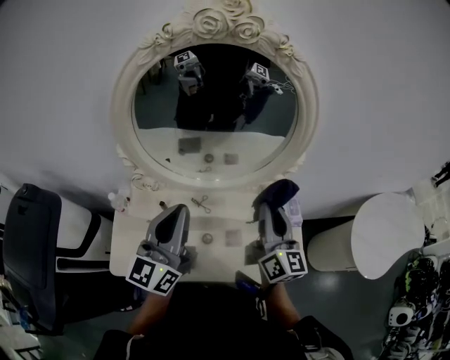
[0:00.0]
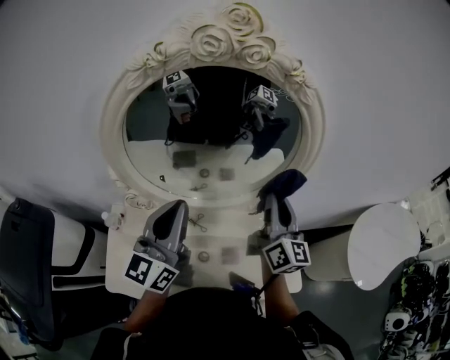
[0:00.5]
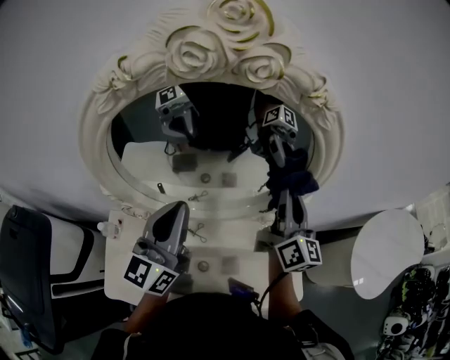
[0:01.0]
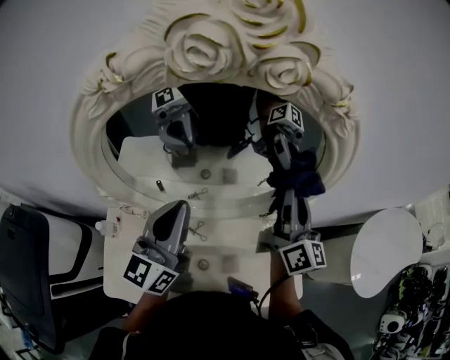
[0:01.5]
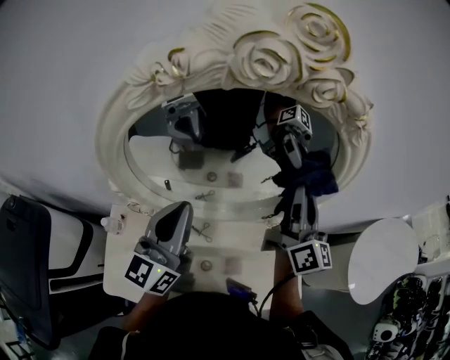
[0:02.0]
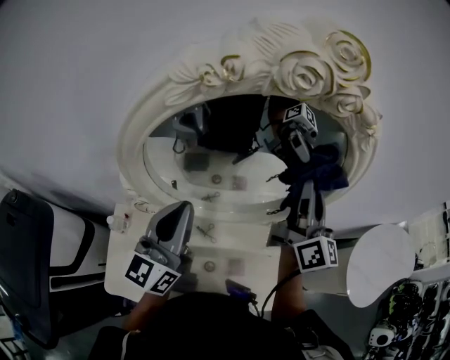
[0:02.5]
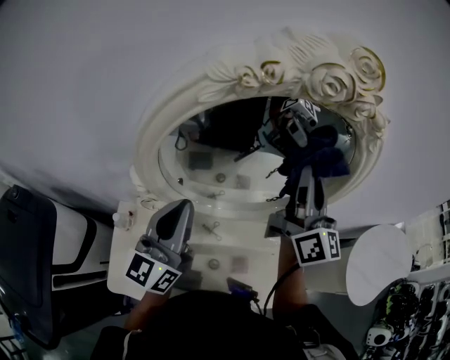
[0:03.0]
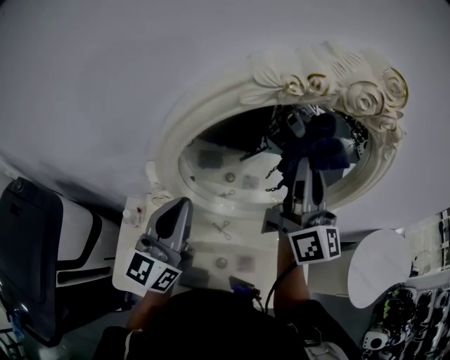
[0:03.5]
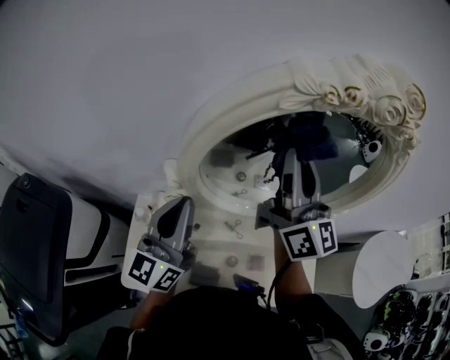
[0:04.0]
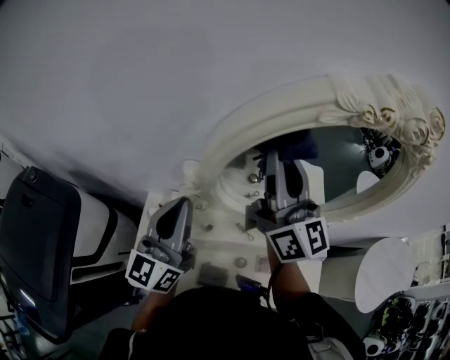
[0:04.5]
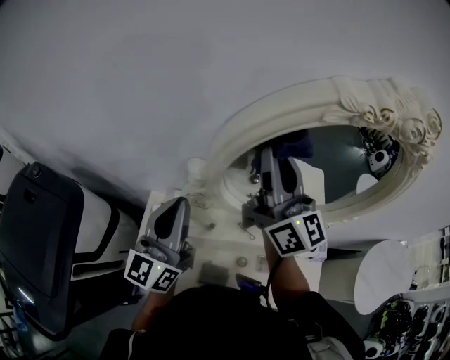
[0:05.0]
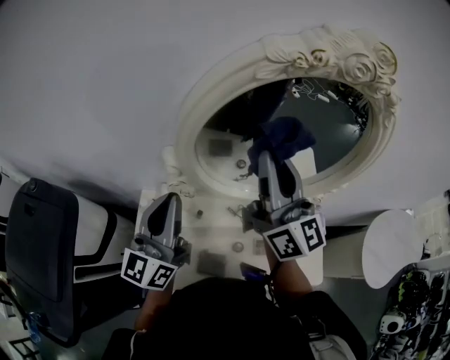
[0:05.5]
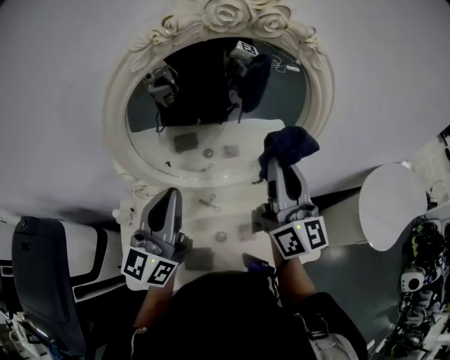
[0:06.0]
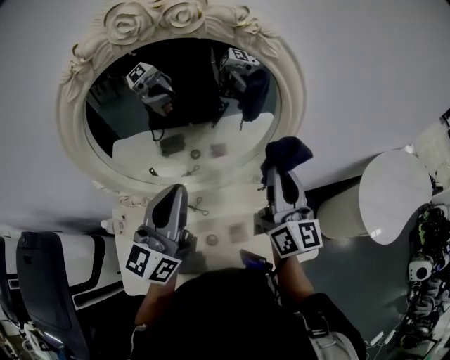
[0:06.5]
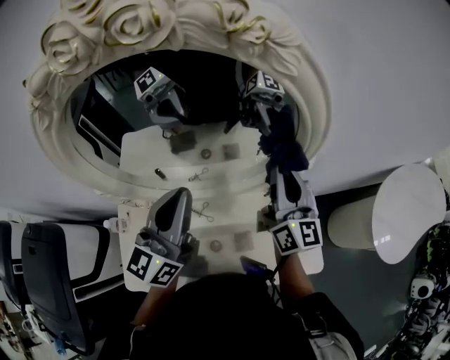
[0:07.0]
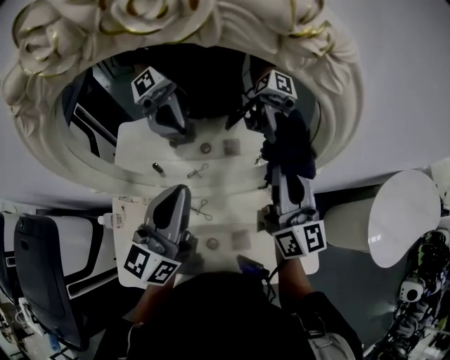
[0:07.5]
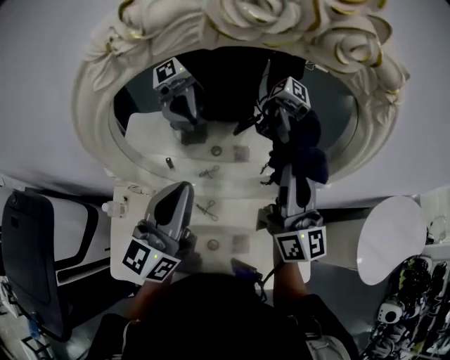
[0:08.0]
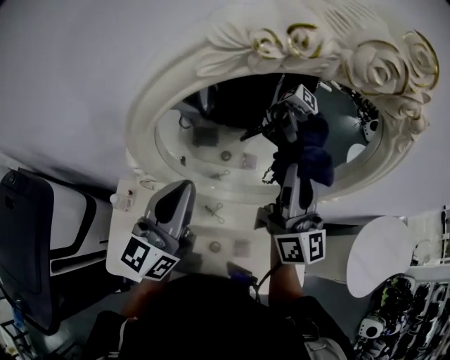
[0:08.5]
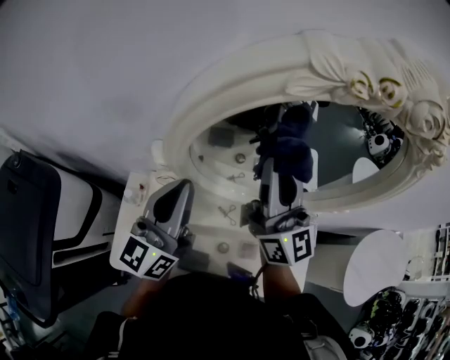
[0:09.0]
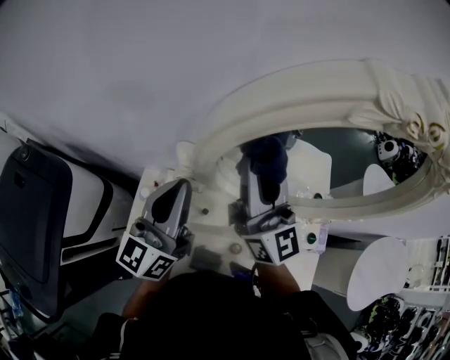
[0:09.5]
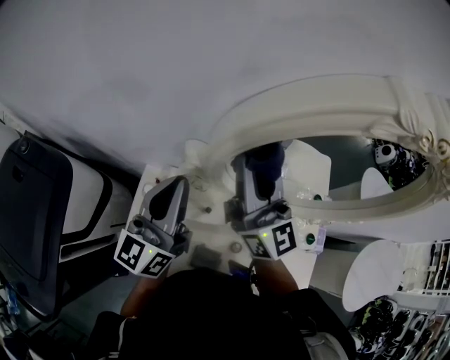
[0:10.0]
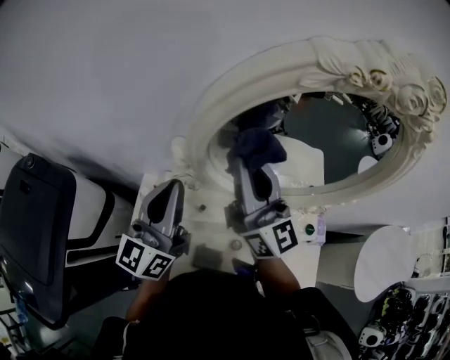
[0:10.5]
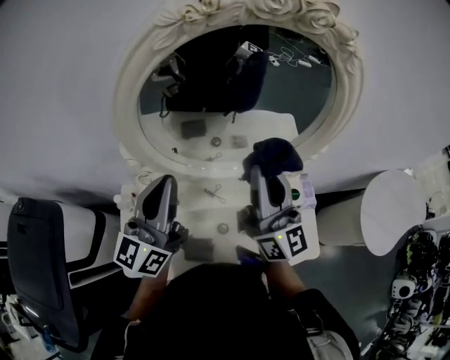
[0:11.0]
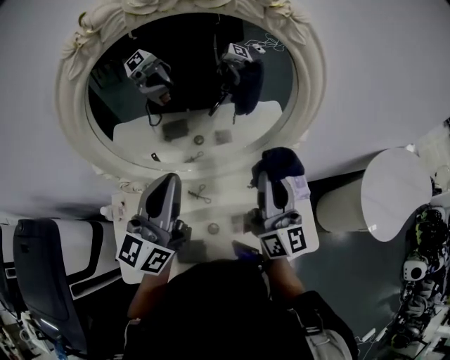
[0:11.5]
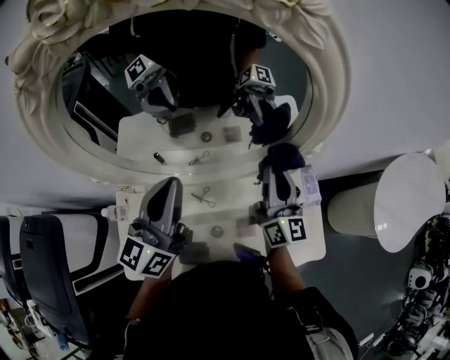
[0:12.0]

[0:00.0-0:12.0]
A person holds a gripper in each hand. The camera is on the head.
0:00.0 to 0:02.0: The right gripper heads forward and upward, covering about 20 cm. Meanwhile the left gripper goes approximately 15 cm forward.
0:02.0 to 0:04.0: The left gripper travels to the left by some 15 cm; the right gripper is displaced to the left and upward by approximately 25 cm, and turns by about 20 degrees.
0:04.0 to 0:06.0: The two grippers go approximately 15 cm to the right and backward.
0:06.0 to 0:08.0: The grippers both shift forward by about 10 cm.
0:08.0 to 0:10.0: Both grippers travel together to the left, some 30 cm. The right gripper swivels about 30 degrees.
0:10.0 to 0:12.0: The right gripper moves roughly 40 cm, and swivels approximately 40 degrees, while the left gripper changes place by roughly 25 cm, and rotates about 20 degrees.

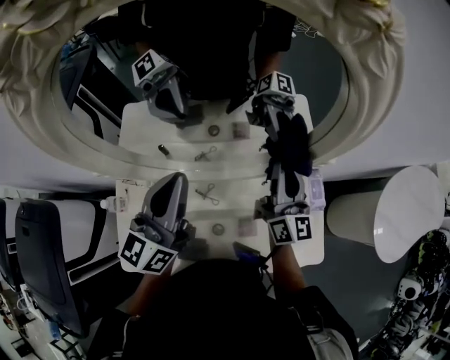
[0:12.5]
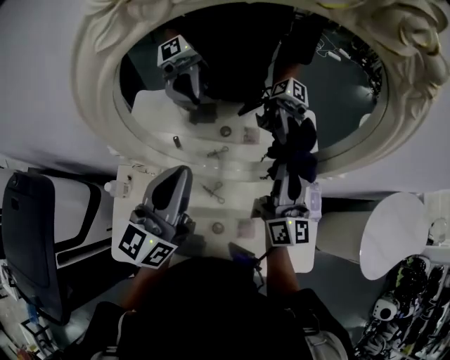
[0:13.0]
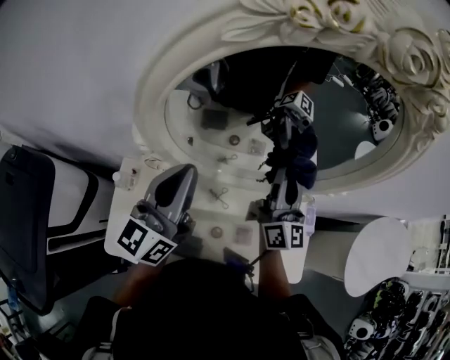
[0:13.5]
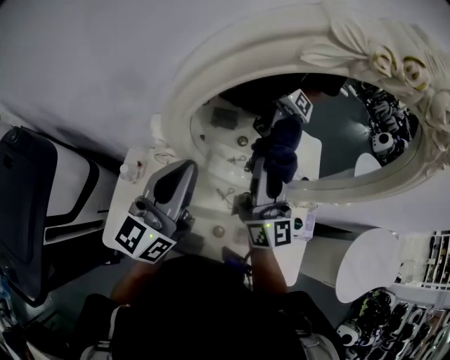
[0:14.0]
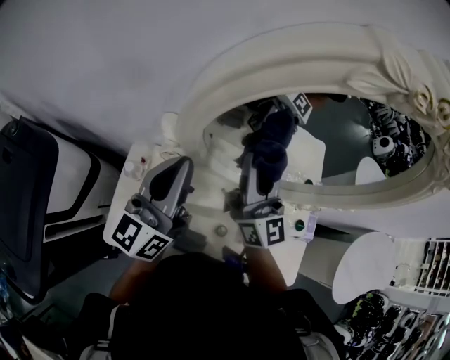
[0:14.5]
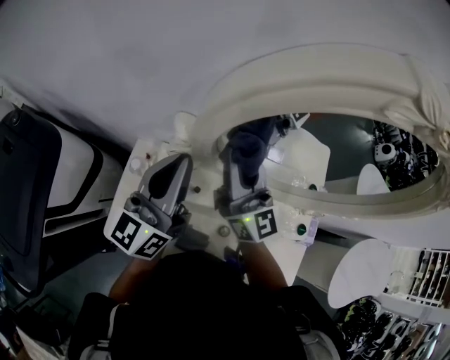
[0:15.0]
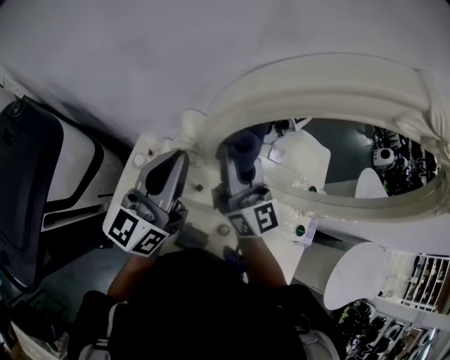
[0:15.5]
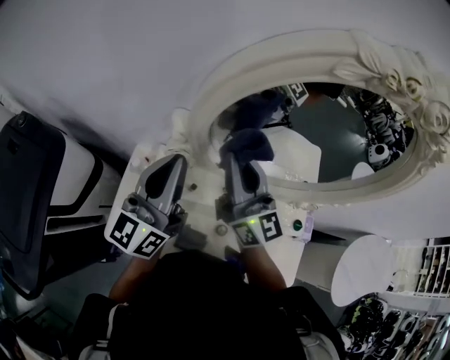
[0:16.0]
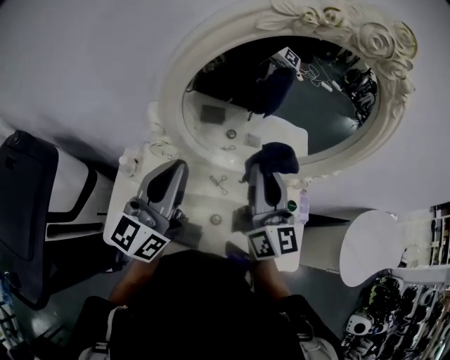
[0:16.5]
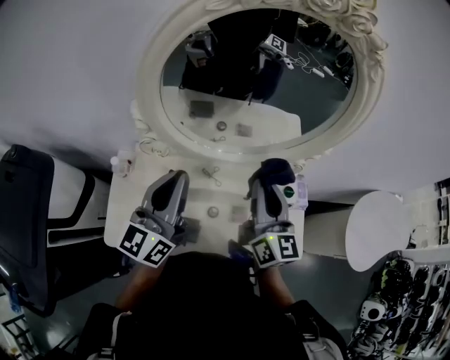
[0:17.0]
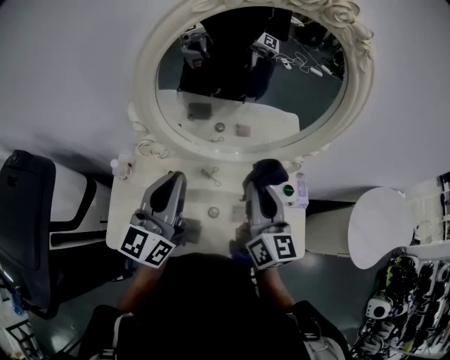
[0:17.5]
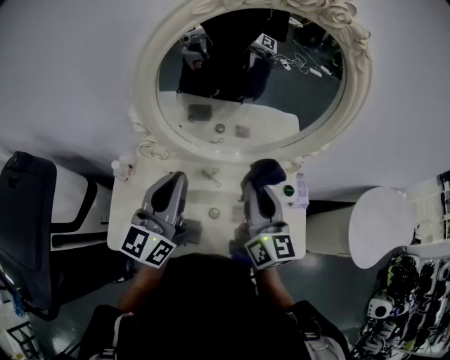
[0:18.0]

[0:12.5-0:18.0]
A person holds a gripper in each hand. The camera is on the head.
0:12.5 to 0:14.5: The right gripper travels to the left by approximately 30 cm, and changes its angle by some 30 degrees. The left gripper is displaced to the left by some 20 cm.
0:14.5 to 0:16.0: The right gripper travels to the left by roughly 5 cm.
0:16.0 to 0:18.0: The right gripper heads to the right and backward, covering approximately 20 cm, and turns by roughly 30 degrees. The left gripper goes about 15 cm to the right and backward.

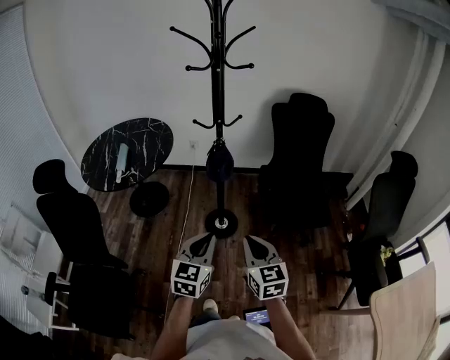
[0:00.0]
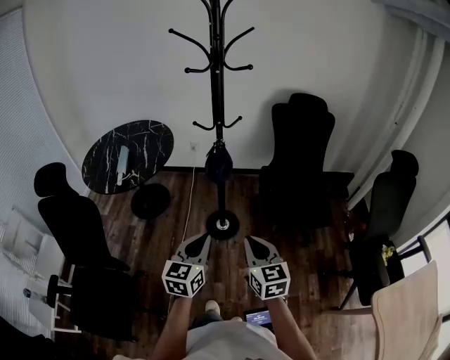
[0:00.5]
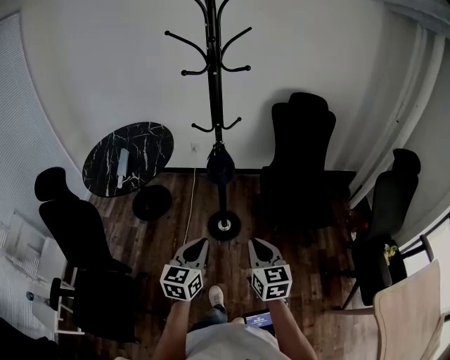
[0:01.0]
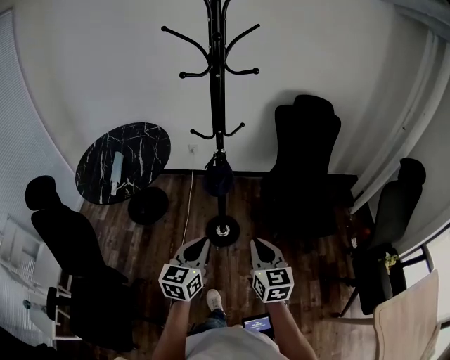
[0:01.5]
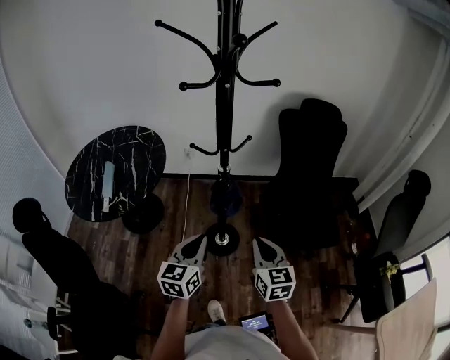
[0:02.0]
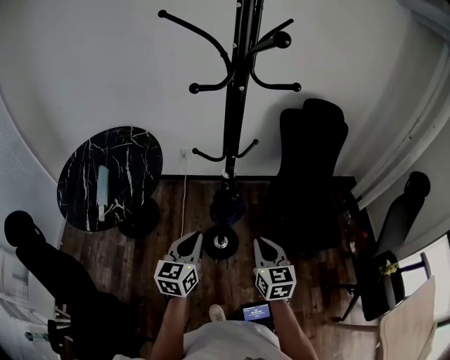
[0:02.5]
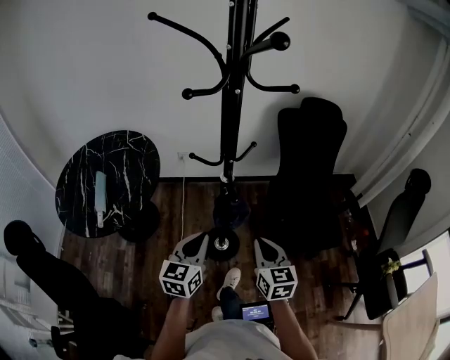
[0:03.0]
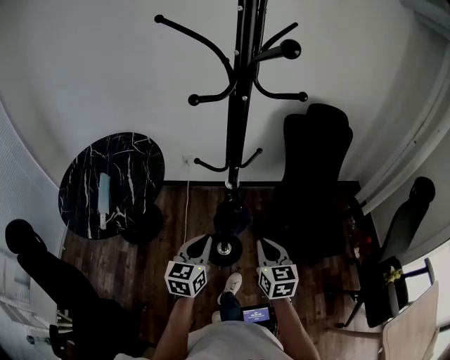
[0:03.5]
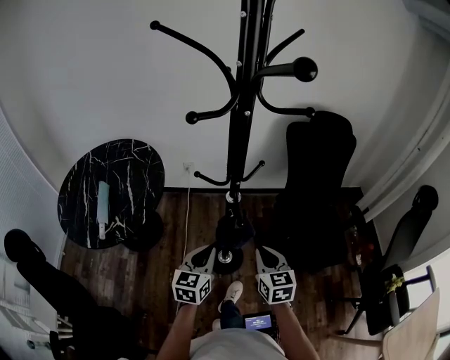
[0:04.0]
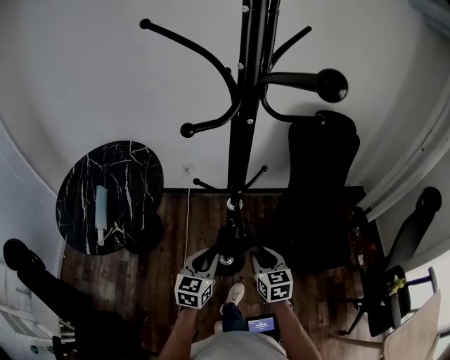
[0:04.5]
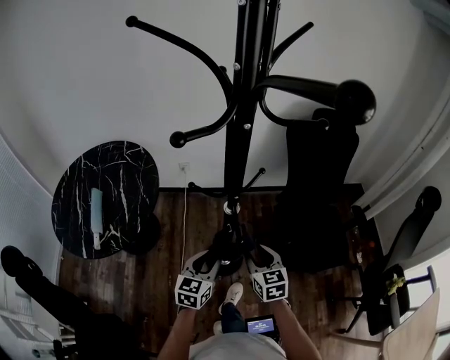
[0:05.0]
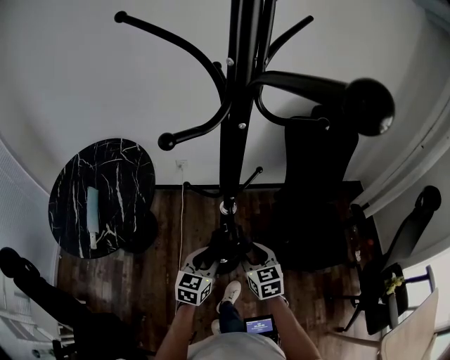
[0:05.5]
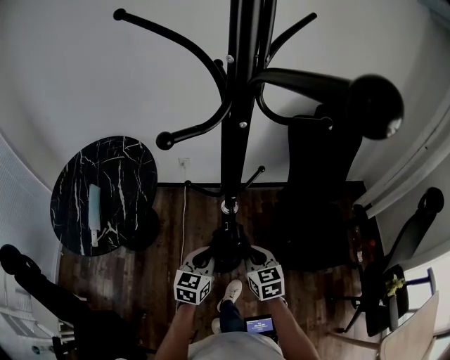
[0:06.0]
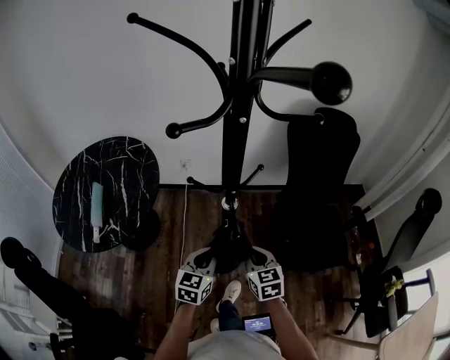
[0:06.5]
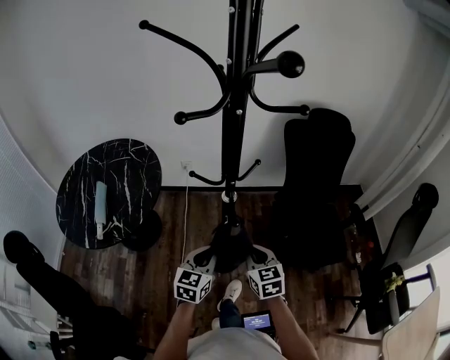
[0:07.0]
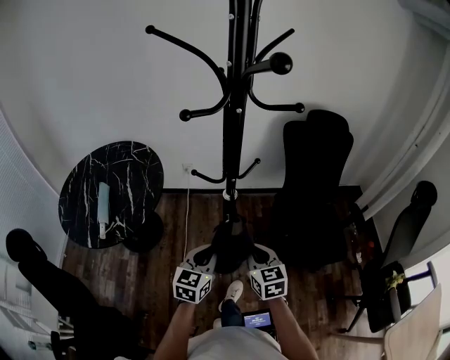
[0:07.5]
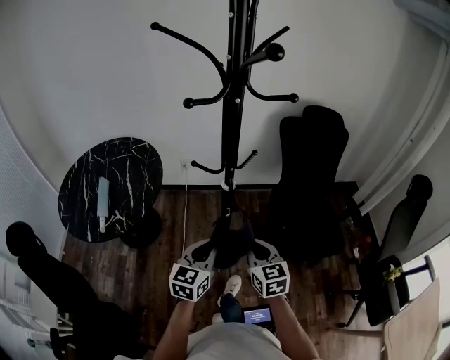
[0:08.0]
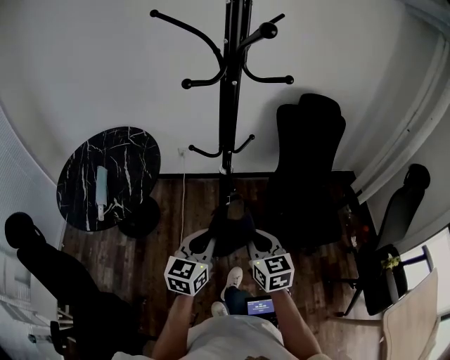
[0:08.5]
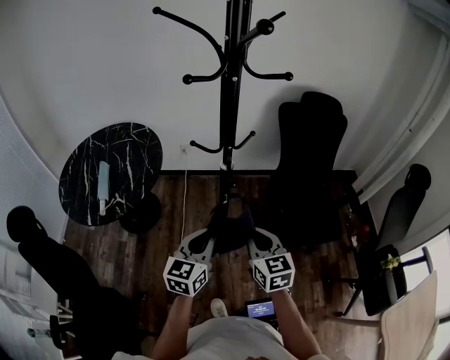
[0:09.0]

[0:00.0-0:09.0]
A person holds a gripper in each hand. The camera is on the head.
0:00.0 to 0:02.0: The two grippers go some 20 cm forward.
0:02.0 to 0:04.5: The two grippers go approximately 20 cm forward and downward. The right gripper opens.
0:04.5 to 0:07.0: The right gripper closes its fingers.
0:07.0 to 0:09.0: Both grippers travel together backward and upward, roughly 15 cm.
